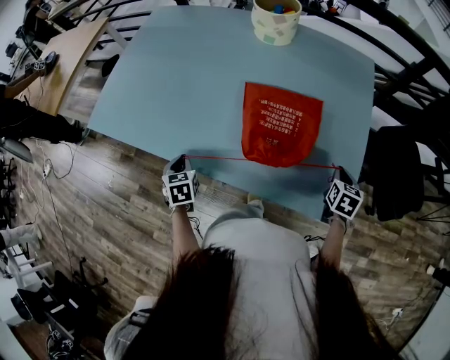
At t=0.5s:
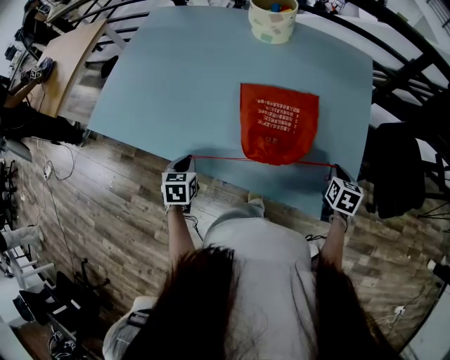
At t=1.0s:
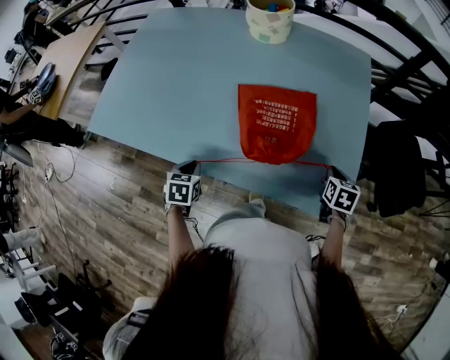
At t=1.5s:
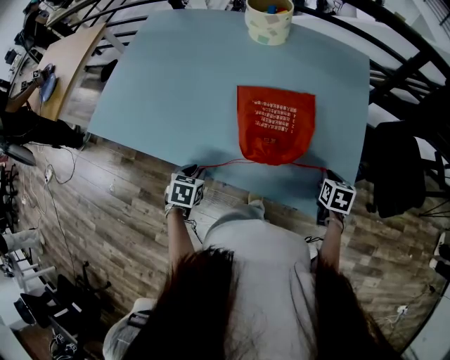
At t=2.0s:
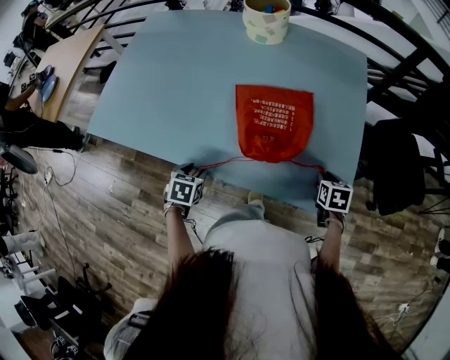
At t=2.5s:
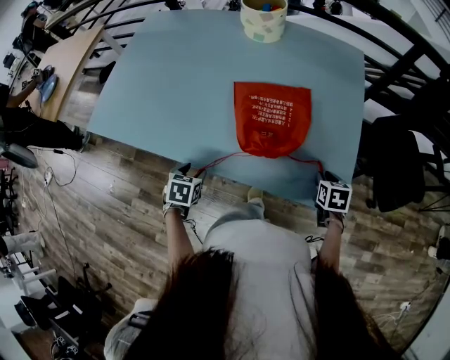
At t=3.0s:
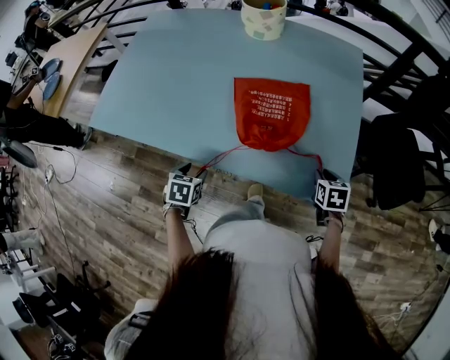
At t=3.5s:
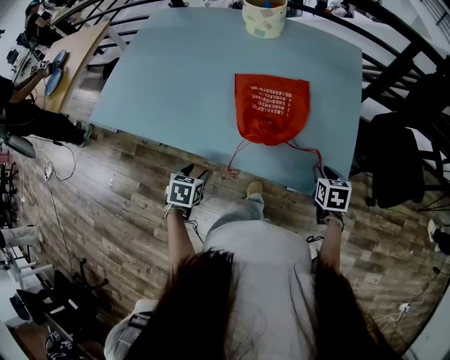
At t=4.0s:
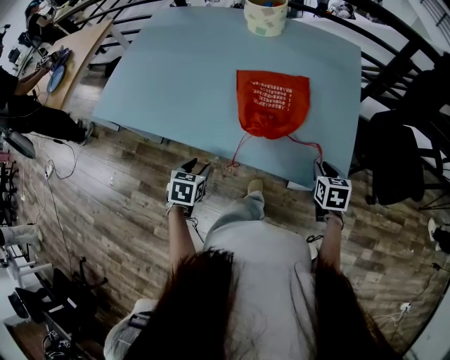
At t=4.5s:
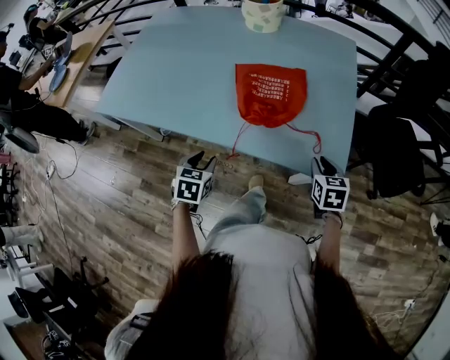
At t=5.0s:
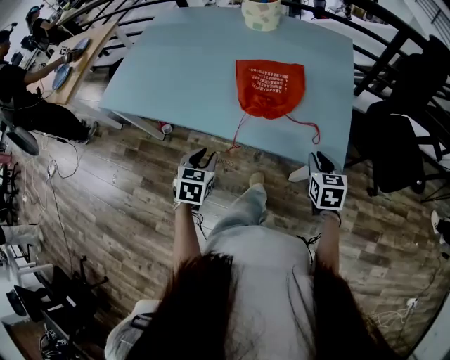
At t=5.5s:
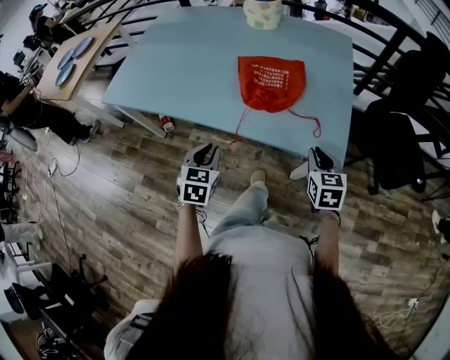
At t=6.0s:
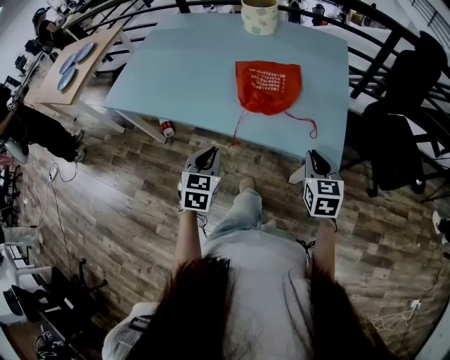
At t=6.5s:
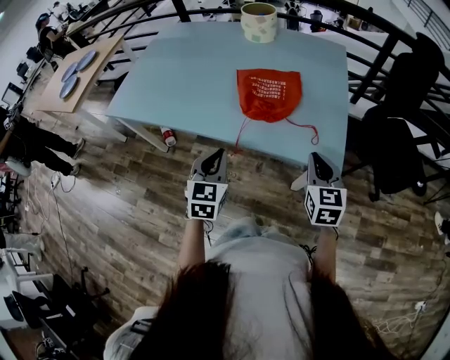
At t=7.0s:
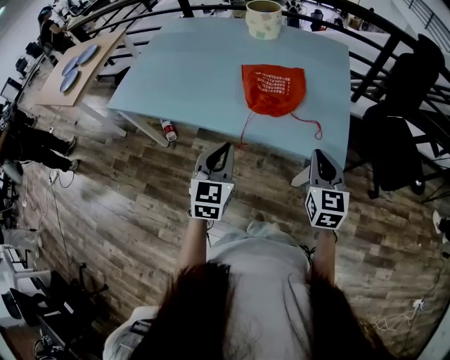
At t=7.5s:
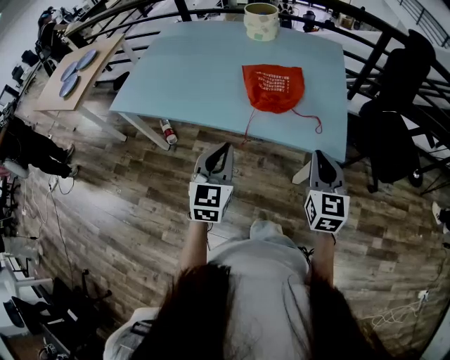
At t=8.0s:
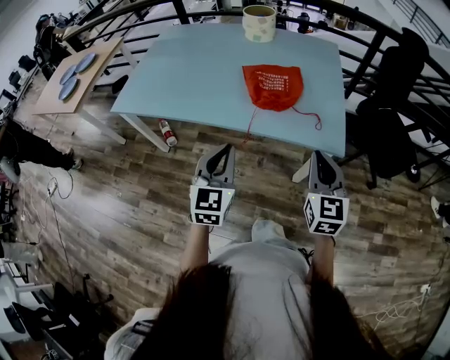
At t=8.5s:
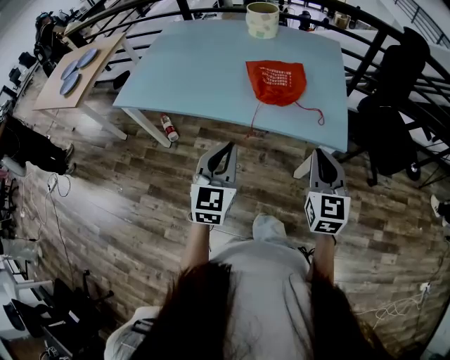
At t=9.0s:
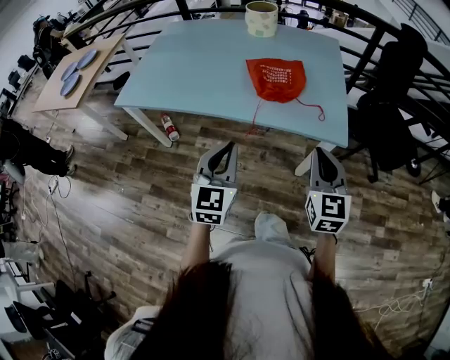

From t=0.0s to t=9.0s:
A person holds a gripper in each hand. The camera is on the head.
From t=0.0s to t=2.0s: The right gripper ends up roughly 5 cm from where it was. Meanwhile the left gripper goes roughly 5 cm to the right, turns by about 30 degrees, and opens.
From t=2.0s to t=4.5s: The left gripper is displaced backward, upward and to the right by some 10 cm. Meanwhile the right gripper moves backward and upward, about 10 cm.
From t=4.5s to t=7.0s: The left gripper is displaced upward, backward and to the right by approximately 15 cm, points its fingers about 30 degrees further upward, and closes, while the right gripper is displaced upward, backward and to the left by about 15 cm, and turns by approximately 30 degrees.
From t=7.0s to t=9.0s: The right gripper goes approximately 15 cm backward, upward and to the left, while the left gripper moves backward and upward, roughly 10 cm.

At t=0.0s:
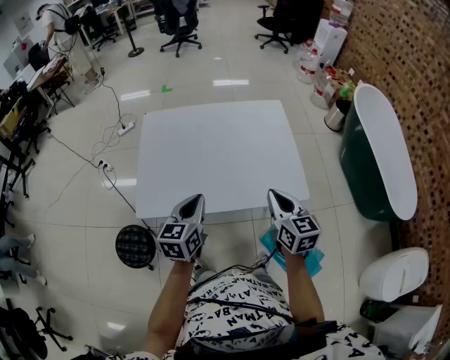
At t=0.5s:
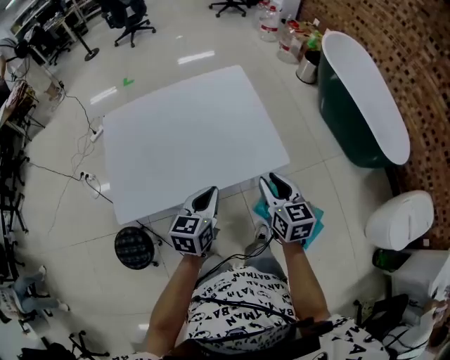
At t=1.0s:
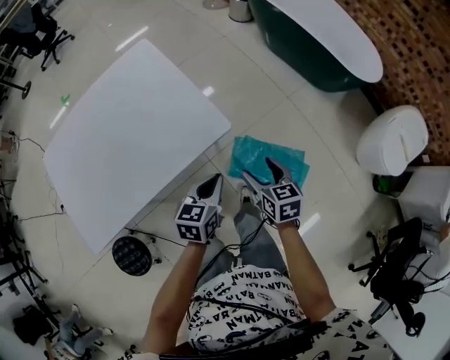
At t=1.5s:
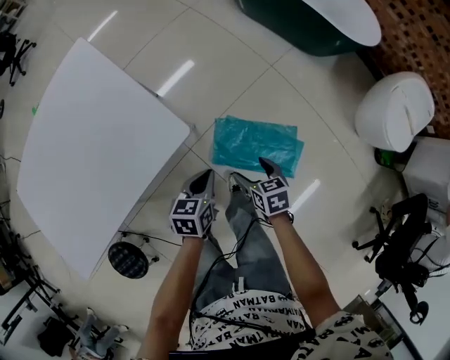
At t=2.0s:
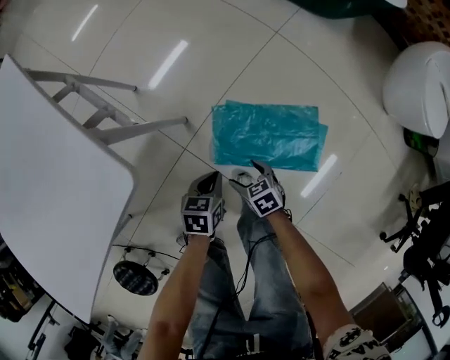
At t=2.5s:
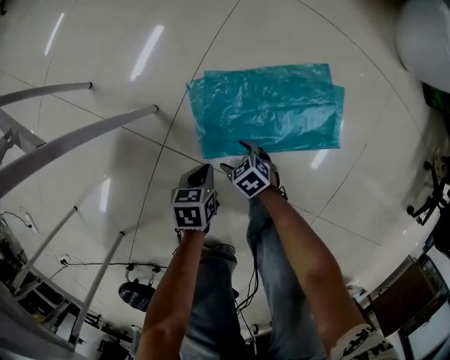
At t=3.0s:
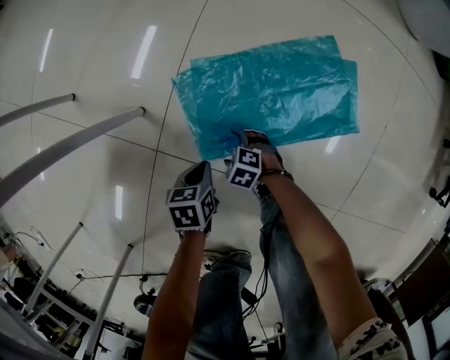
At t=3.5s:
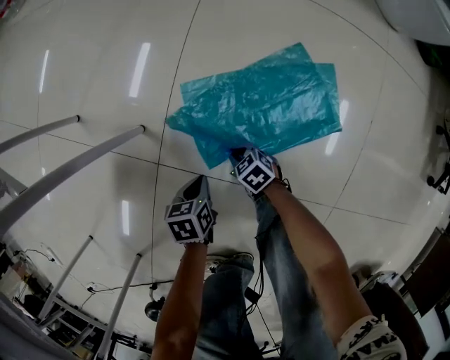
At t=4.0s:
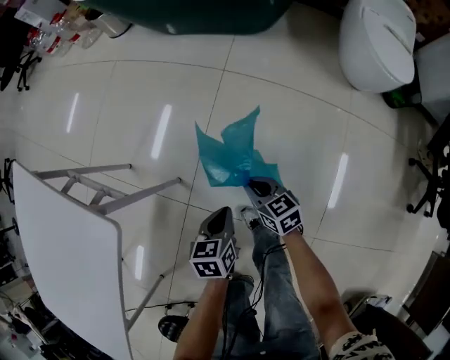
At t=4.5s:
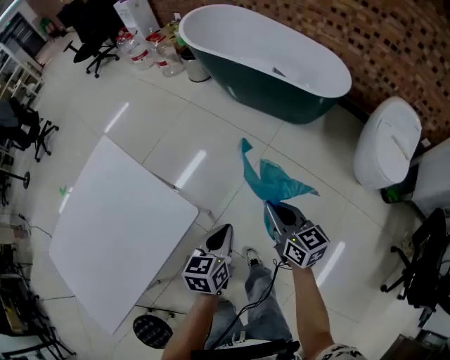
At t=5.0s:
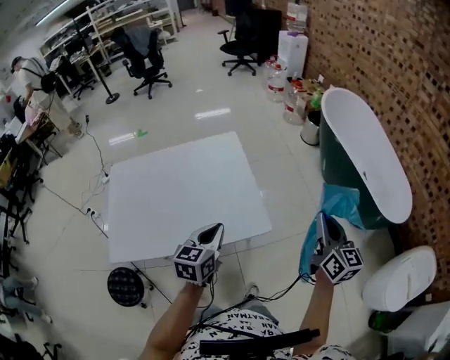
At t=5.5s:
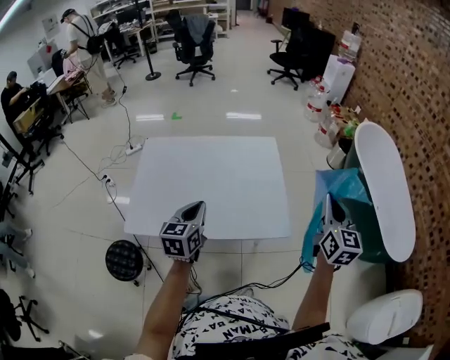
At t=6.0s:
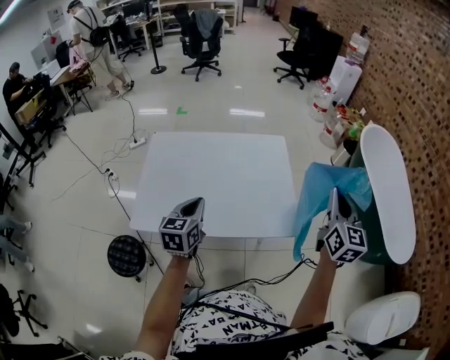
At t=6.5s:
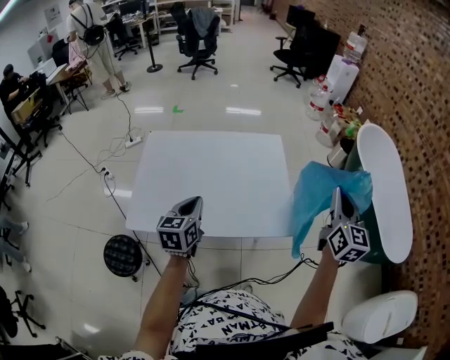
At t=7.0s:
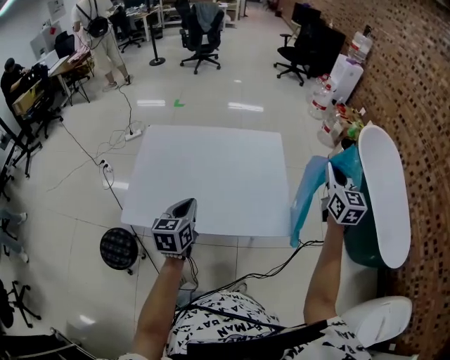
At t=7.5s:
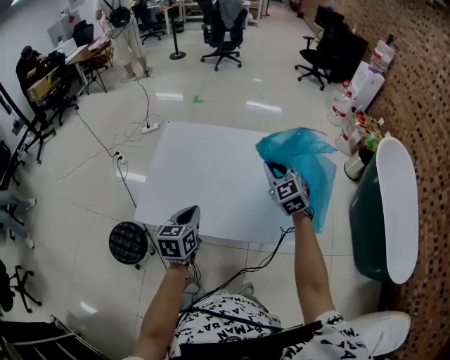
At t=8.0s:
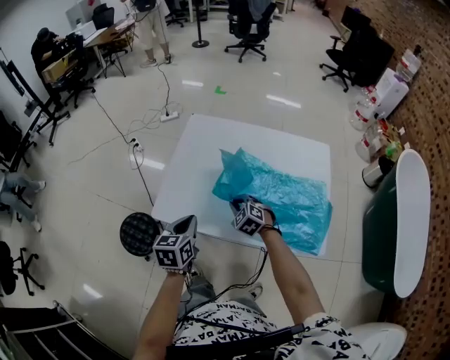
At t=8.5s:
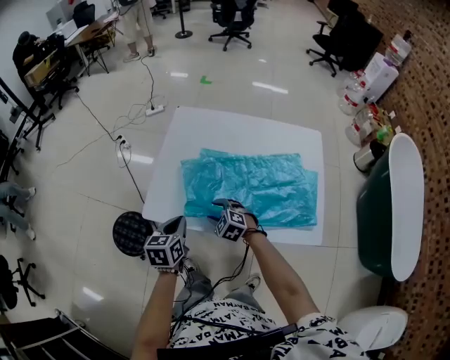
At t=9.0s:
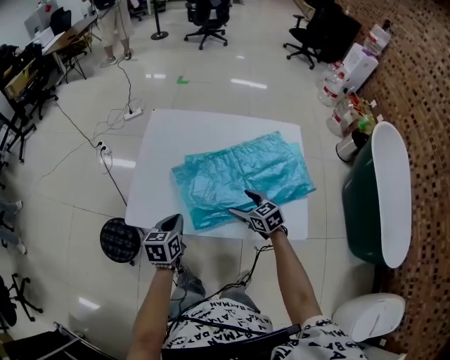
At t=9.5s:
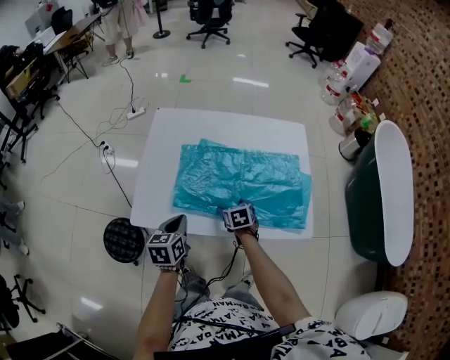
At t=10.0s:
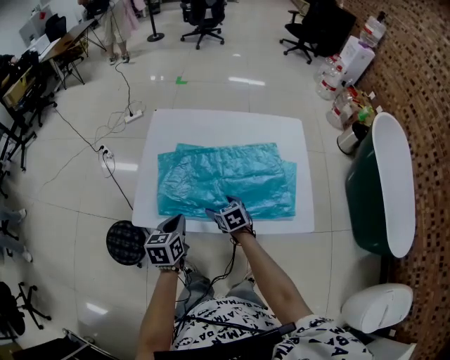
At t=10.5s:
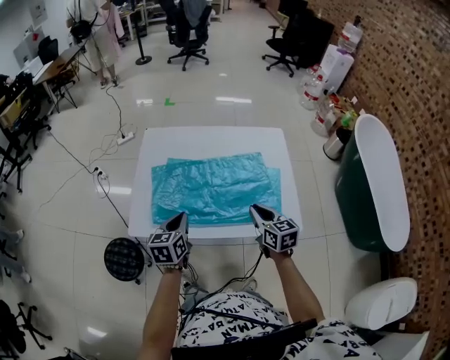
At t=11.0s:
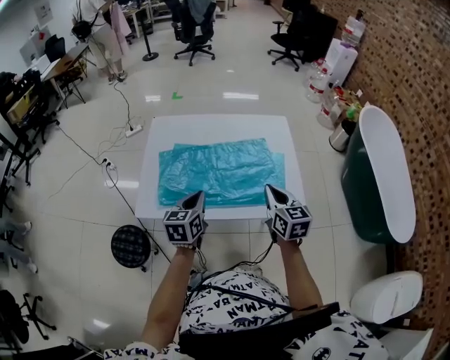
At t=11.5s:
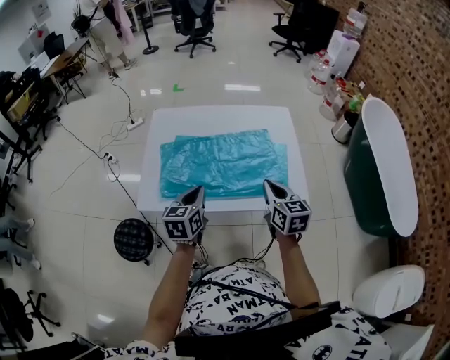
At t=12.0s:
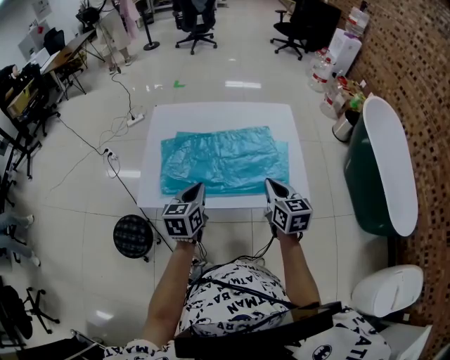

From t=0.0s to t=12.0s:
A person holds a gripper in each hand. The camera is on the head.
From t=0.0s to t=2.0s: The two grippers go some 60 cm downward. The right gripper points its fingers some 40 degrees further downward, and opens. The left gripper tilts its fingers about 30 degrees downward.
From t=2.0s to t=4.0s: The left gripper moves to the right, roughly 10 cm, and goes downward and returns, some 30 cm each way, while the right gripper travels to the right and forward by some 15 cm, moves some 30 cm downward and comes back, changes its angle by some 30 degrees, and closes its fingers.
From t=4.0s to t=6.0s: The right gripper shifts some 70 cm upward, and points its fingers approximately 30 degrees further upward; the left gripper ends up approximately 70 cm from where it was, and turns by about 70 degrees.
From t=6.0s to t=8.0s: The right gripper moves roughly 60 cm, and points its fingers about 50 degrees further downward; the left gripper shifts by roughly 15 cm, and changes its angle by roughly 20 degrees.
From t=8.0s to t=10.0s: The right gripper goes left and right, roughly 20 cm each way, reversing 2 times, twists approximately 50 degrees clockwise, seen from behind, and opens its fingers; the left gripper ends up approximately 5 cm from where it was.
From t=10.0s to t=12.0s: The left gripper is displaced upward and to the right by approximately 10 cm. The right gripper heads upward and to the right, covering some 25 cm, rotates approximately 40 degrees, and closes.

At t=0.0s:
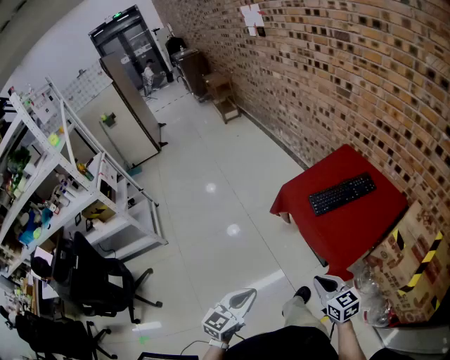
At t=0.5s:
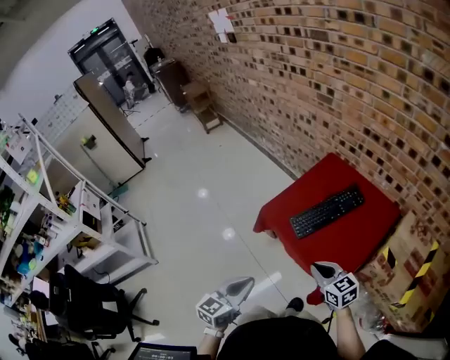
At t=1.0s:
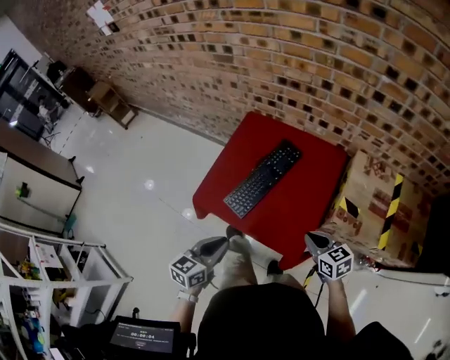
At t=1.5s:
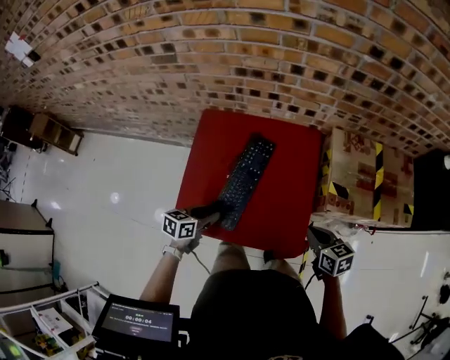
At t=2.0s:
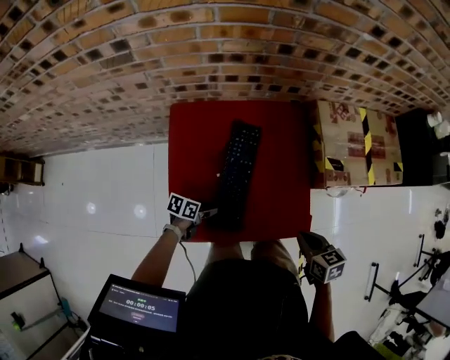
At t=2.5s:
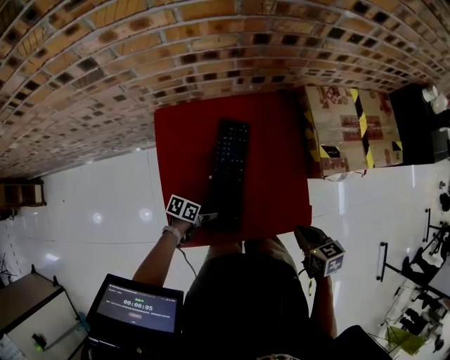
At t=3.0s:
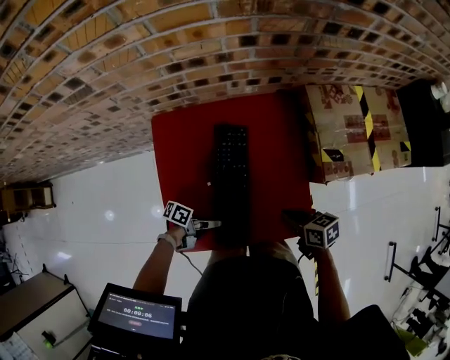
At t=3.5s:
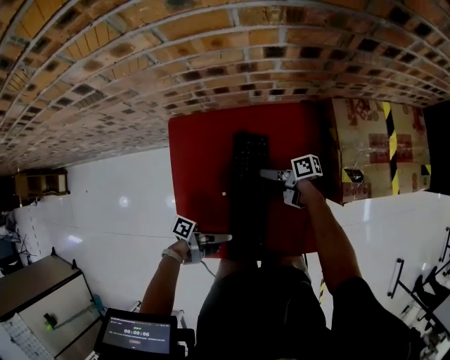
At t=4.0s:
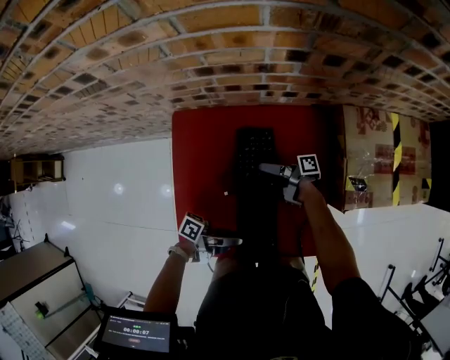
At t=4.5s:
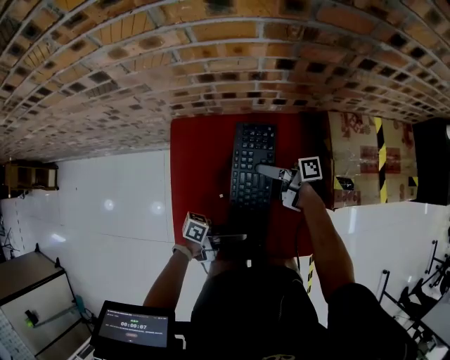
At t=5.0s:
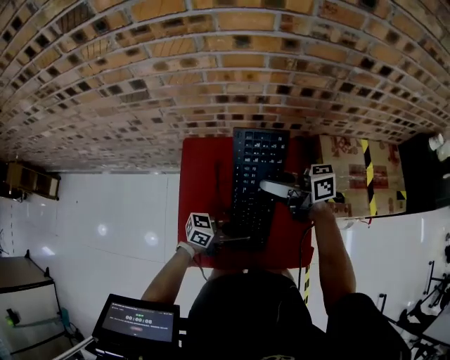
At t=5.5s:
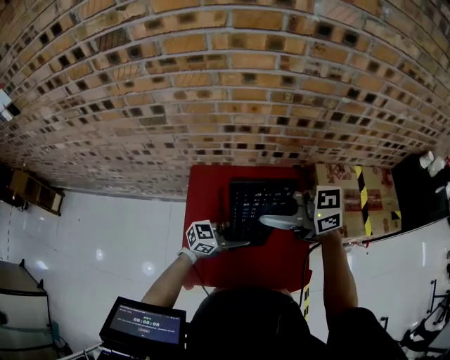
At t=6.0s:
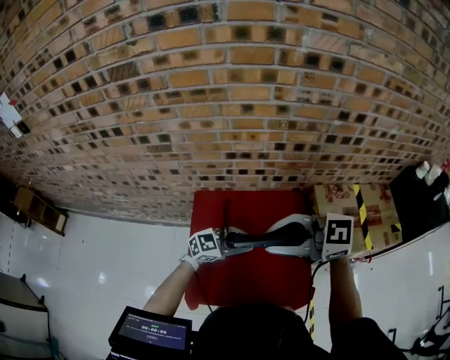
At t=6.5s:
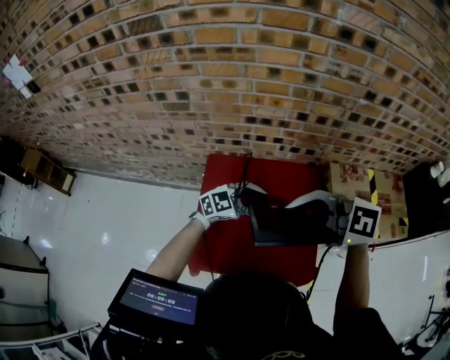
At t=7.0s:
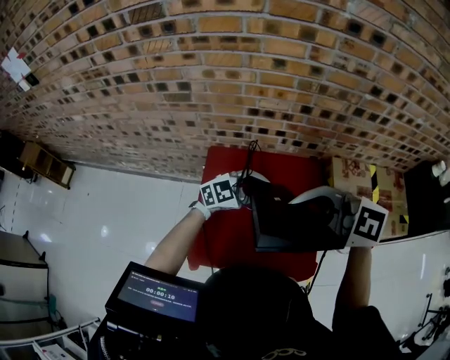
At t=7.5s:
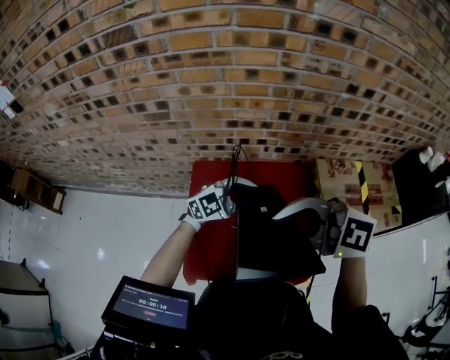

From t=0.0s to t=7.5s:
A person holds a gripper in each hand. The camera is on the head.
From t=0.0s to t=2.0s: The right gripper changes place by some 30 cm, and swivels some 70 degrees. Meanwhile the left gripper moves some 60 cm, changes its angle by approximately 90 degrees, and opens.
From t=2.0s to t=4.0s: The left gripper heads upward, covering about 10 cm, and tilts its fingers about 50 degrees upward; the right gripper shifts by roughly 35 cm, angles its fingers upward, by about 50 degrees, and opens and closes again.
From t=4.0s to t=5.5s: The right gripper heads upward, covering about 40 cm, and rolls counterclockwise, seen from behind, by about 90 degrees. Meanwhile the left gripper goes roughly 10 cm upward, and rolls clockwise, seen from behind, by about 70 degrees.
From t=5.5s to t=7.5s: Both grippers travel together upward, roughly 10 cm. The right gripper changes its angle by some 40 degrees, while the left gripper turns by roughly 40 degrees.
